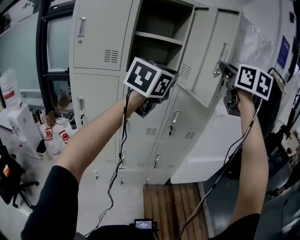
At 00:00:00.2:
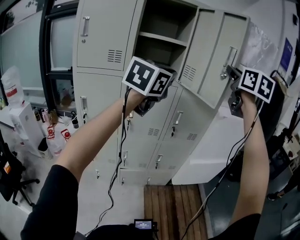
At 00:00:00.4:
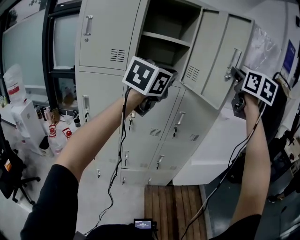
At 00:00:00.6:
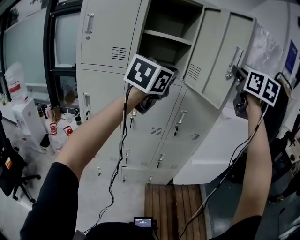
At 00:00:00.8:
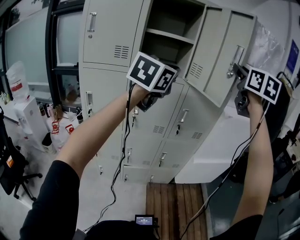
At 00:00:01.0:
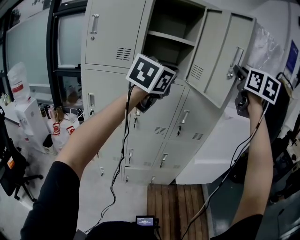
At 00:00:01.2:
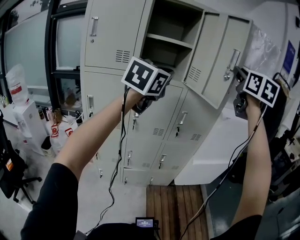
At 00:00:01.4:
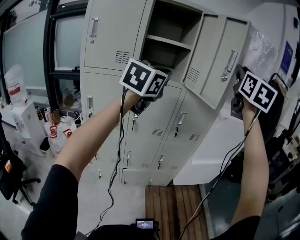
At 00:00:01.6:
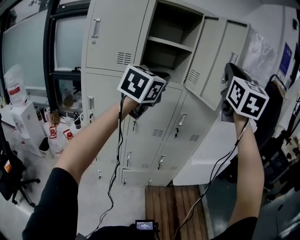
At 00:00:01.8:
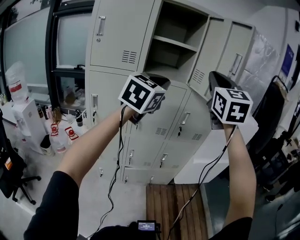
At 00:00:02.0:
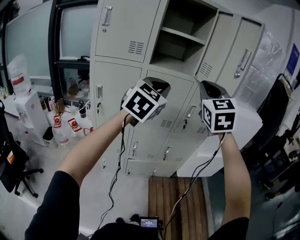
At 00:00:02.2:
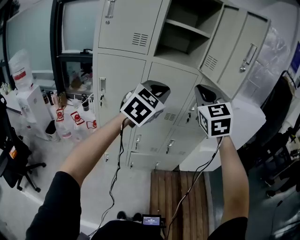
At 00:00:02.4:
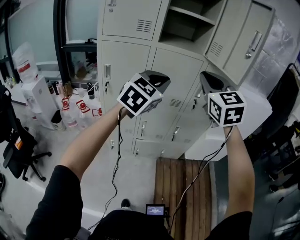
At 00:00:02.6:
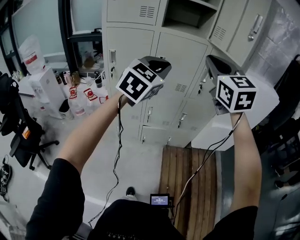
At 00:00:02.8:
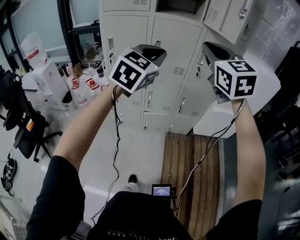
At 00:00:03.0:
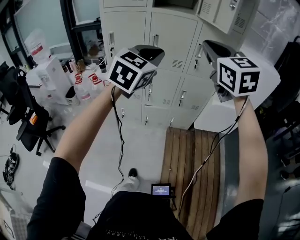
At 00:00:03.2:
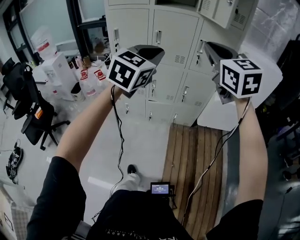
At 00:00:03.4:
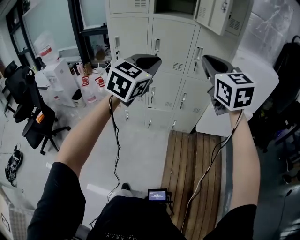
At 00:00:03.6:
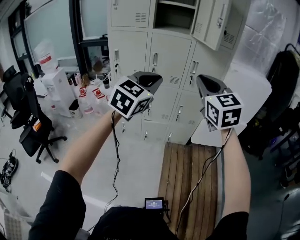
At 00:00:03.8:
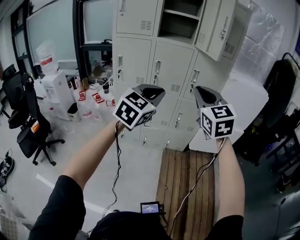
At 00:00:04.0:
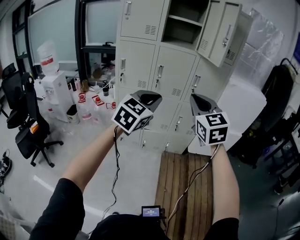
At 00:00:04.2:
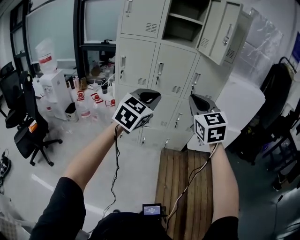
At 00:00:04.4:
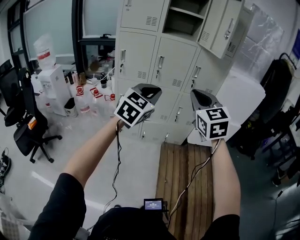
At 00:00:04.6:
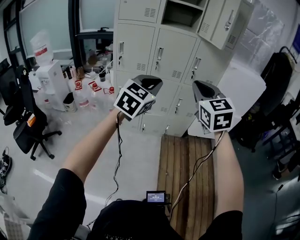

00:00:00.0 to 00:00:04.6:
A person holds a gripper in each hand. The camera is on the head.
00:00:00.0 to 00:00:01.6: The right gripper heads backward, covering approximately 10 cm, and turns by roughly 20 degrees. Meanwhile the left gripper moves to the left, some 5 cm.
00:00:01.6 to 00:00:03.0: Both grippers travel together downward and backward, roughly 25 cm. The right gripper changes its angle by about 40 degrees.
00:00:03.0 to 00:00:04.6: The left gripper shifts about 15 cm backward, while the right gripper heads backward and downward, covering some 15 cm.

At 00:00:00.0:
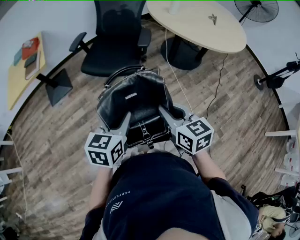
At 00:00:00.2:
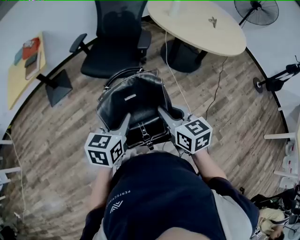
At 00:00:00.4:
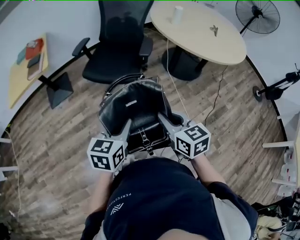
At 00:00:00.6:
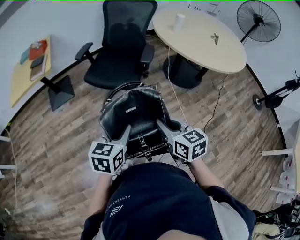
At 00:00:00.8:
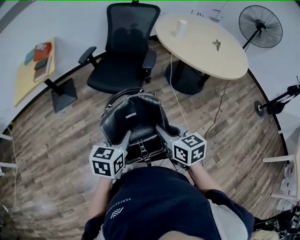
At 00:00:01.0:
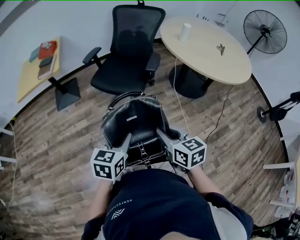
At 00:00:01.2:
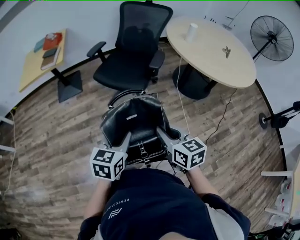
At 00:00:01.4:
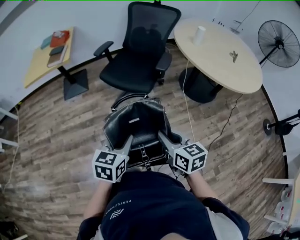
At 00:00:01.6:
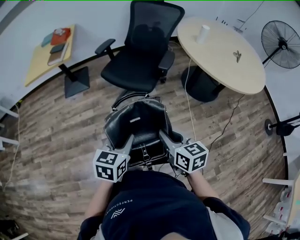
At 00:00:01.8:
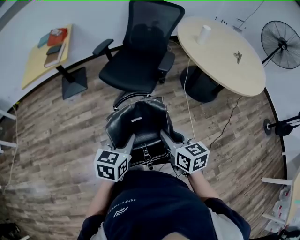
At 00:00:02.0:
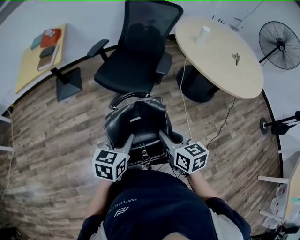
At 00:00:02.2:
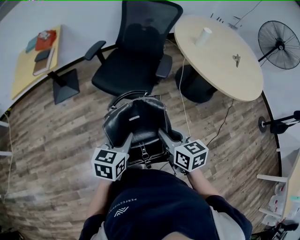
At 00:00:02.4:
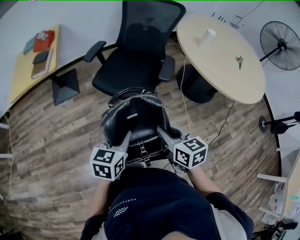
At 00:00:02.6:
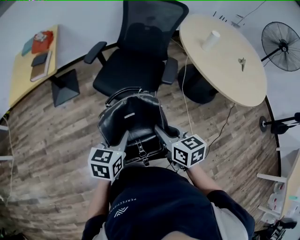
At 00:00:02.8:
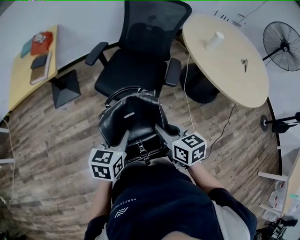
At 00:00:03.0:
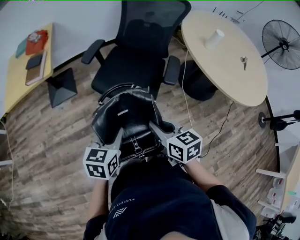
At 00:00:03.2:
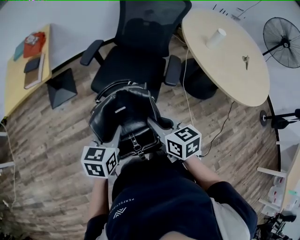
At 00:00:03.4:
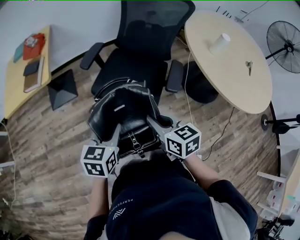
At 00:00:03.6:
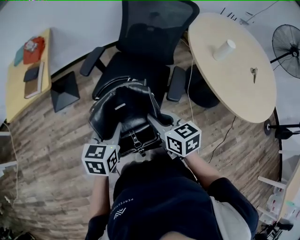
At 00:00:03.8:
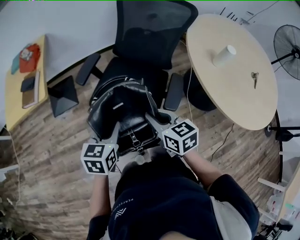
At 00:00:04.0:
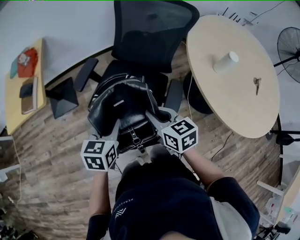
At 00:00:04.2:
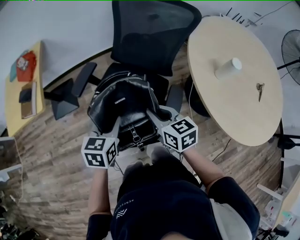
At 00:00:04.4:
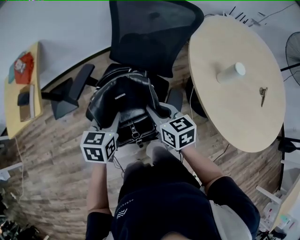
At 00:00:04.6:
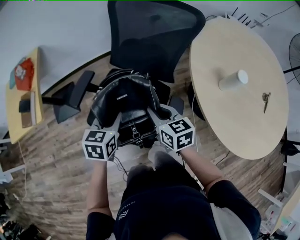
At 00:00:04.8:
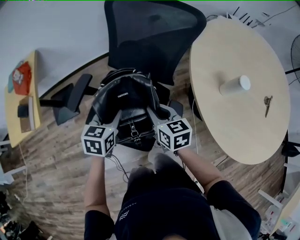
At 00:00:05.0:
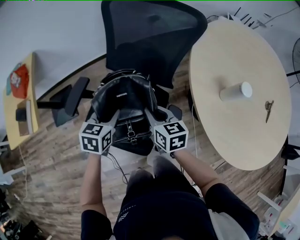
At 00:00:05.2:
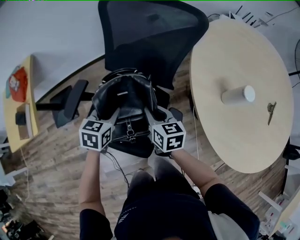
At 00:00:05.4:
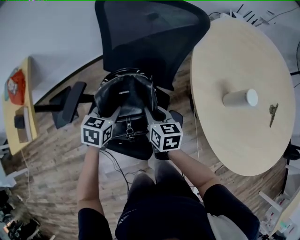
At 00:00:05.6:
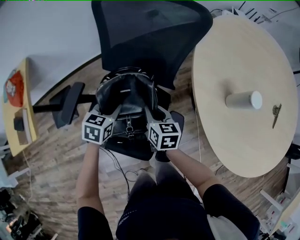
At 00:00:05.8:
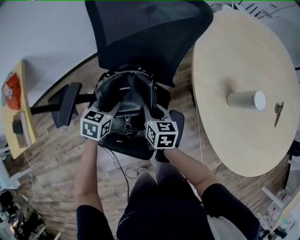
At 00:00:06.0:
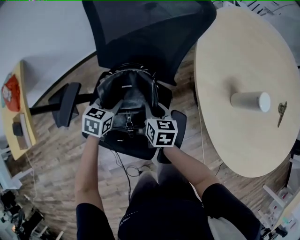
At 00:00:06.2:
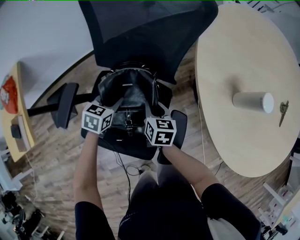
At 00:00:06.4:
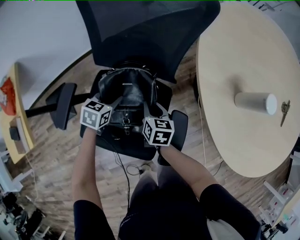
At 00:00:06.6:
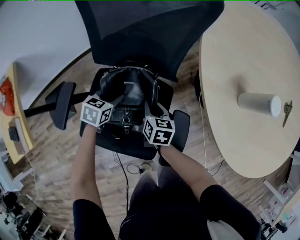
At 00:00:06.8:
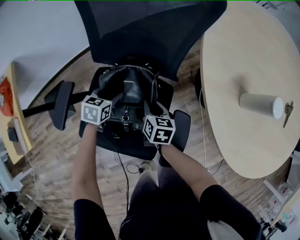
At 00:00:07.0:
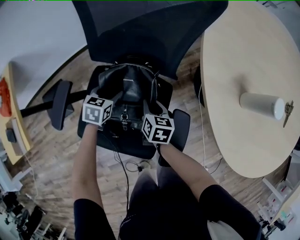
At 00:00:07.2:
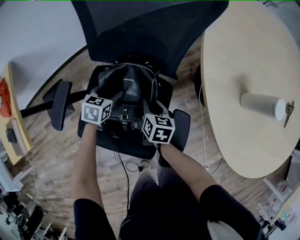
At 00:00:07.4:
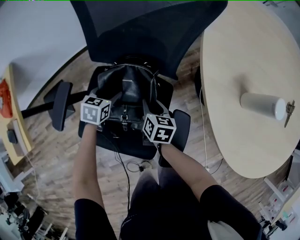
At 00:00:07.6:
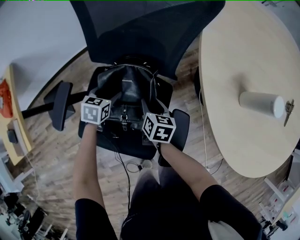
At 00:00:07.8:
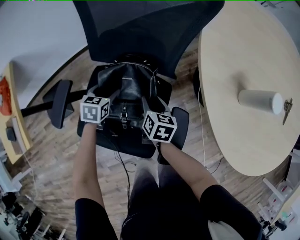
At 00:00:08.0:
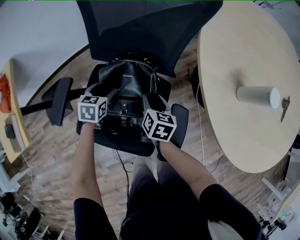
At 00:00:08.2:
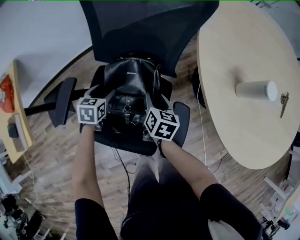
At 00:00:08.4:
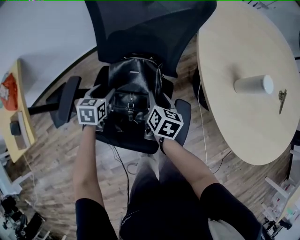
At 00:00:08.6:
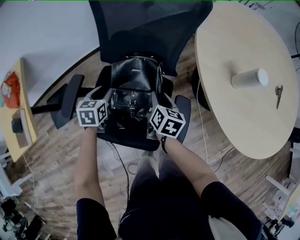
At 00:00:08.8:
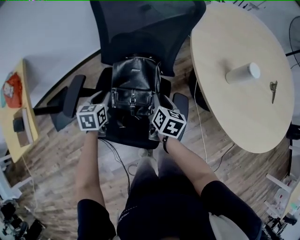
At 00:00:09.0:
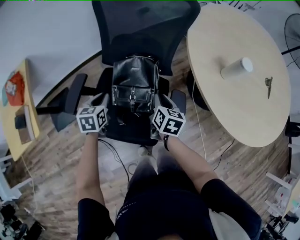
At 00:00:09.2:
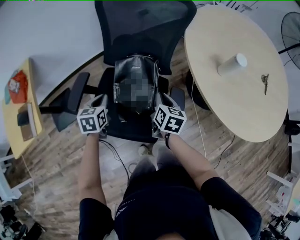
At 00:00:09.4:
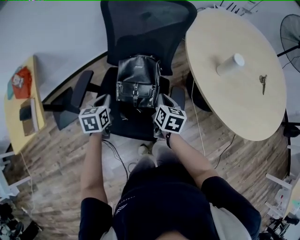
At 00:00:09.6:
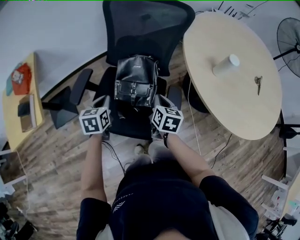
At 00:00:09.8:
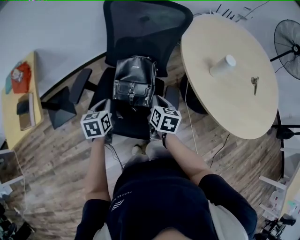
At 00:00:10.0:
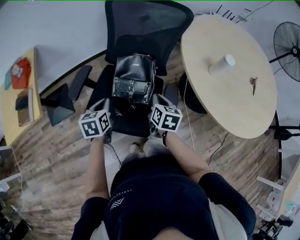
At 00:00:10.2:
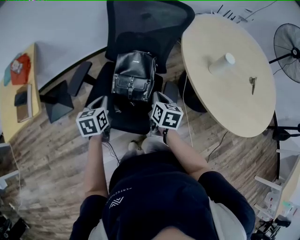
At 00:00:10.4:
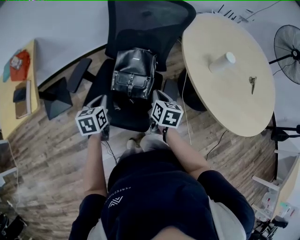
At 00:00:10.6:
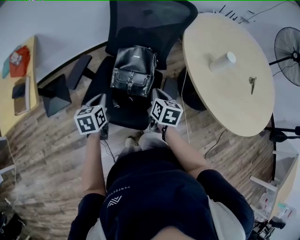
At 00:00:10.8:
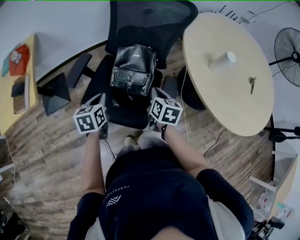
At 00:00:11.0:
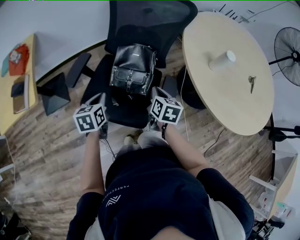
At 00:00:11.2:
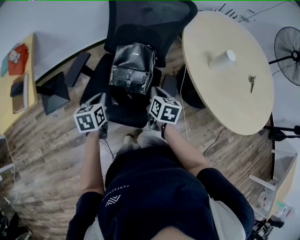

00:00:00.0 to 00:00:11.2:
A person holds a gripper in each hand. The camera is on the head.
00:00:00.0 to 00:00:01.6: There are only small adjustments of the grippers.
00:00:01.6 to 00:00:03.2: The grippers both shift forward by roughly 25 cm.
00:00:03.2 to 00:00:04.8: The right gripper travels forward and to the right by some 35 cm, while the left gripper is displaced forward by some 35 cm.
00:00:04.8 to 00:00:06.4: Both grippers move downward and forward, roughly 20 cm. The right gripper swivels about 30 degrees. The left gripper rotates some 20 degrees.
00:00:06.4 to 00:00:08.0: The left gripper opens, while the right gripper opens up.
00:00:08.0 to 00:00:09.6: The left gripper goes roughly 20 cm backward and upward, and closes, while the right gripper moves upward and backward, approximately 15 cm, and closes up.
00:00:09.6 to 00:00:11.2: The left gripper travels backward by roughly 5 cm.

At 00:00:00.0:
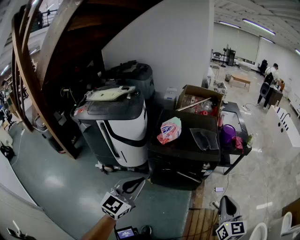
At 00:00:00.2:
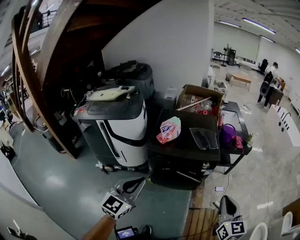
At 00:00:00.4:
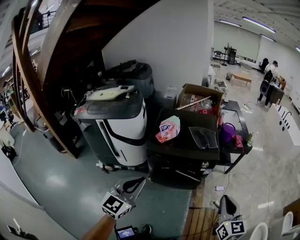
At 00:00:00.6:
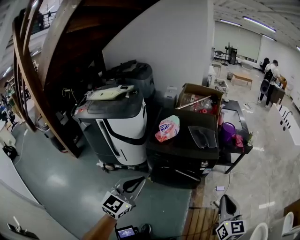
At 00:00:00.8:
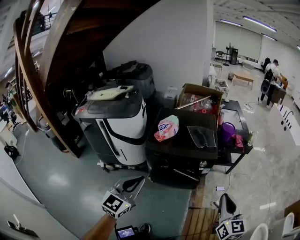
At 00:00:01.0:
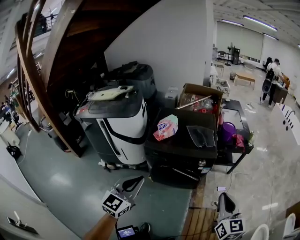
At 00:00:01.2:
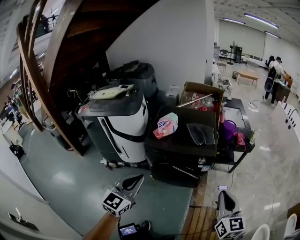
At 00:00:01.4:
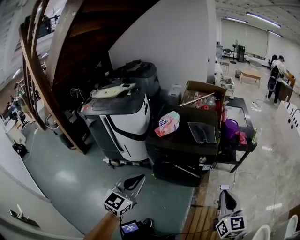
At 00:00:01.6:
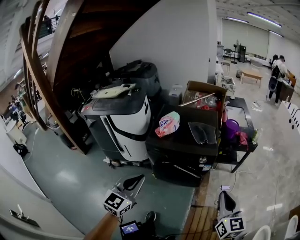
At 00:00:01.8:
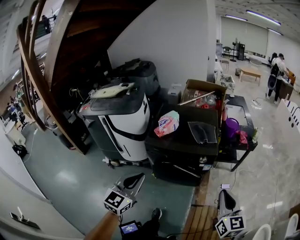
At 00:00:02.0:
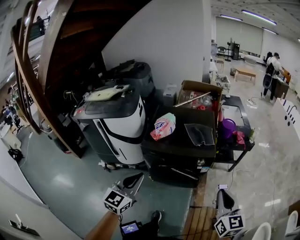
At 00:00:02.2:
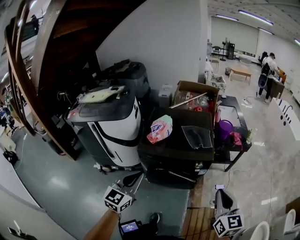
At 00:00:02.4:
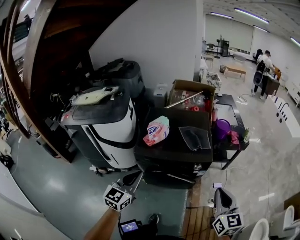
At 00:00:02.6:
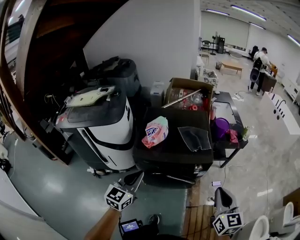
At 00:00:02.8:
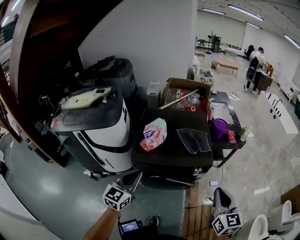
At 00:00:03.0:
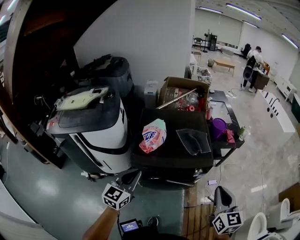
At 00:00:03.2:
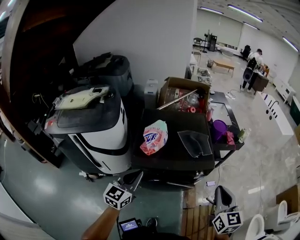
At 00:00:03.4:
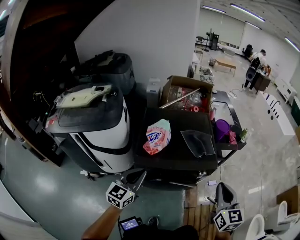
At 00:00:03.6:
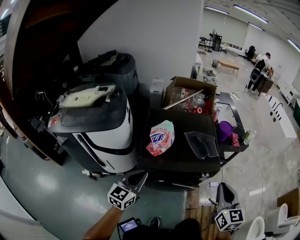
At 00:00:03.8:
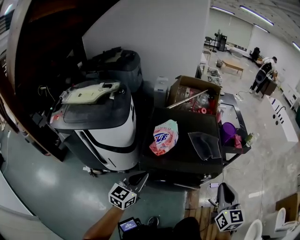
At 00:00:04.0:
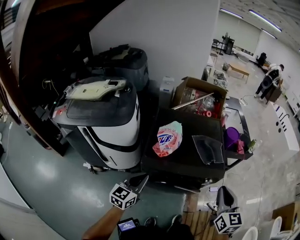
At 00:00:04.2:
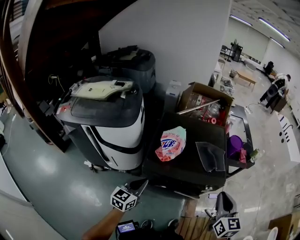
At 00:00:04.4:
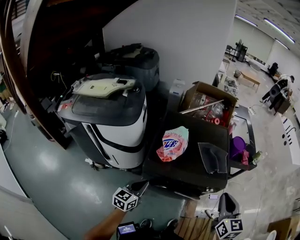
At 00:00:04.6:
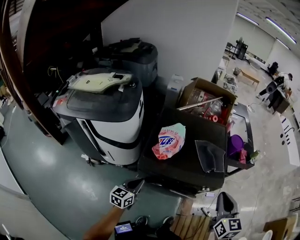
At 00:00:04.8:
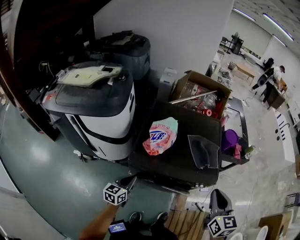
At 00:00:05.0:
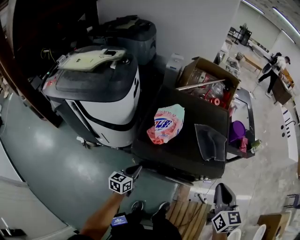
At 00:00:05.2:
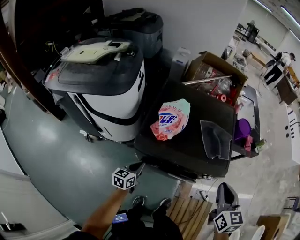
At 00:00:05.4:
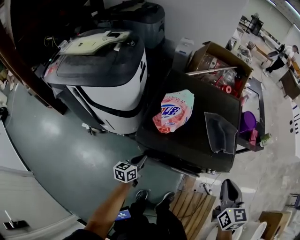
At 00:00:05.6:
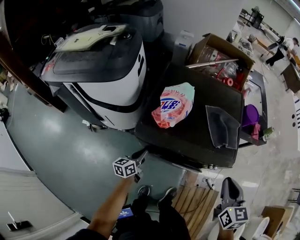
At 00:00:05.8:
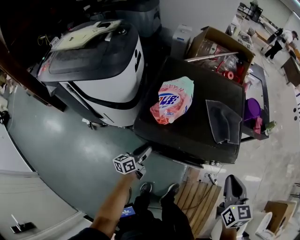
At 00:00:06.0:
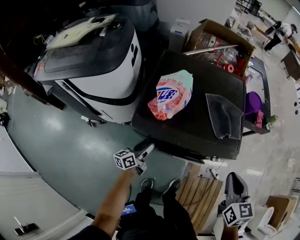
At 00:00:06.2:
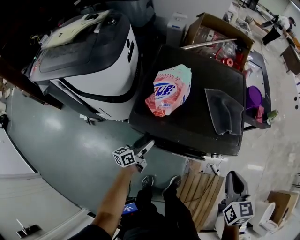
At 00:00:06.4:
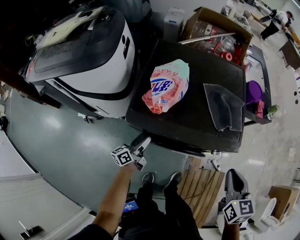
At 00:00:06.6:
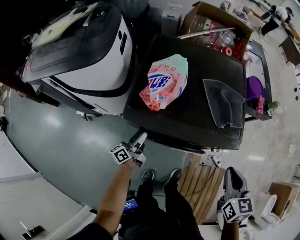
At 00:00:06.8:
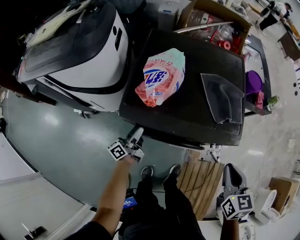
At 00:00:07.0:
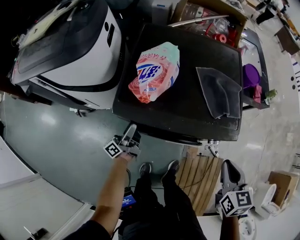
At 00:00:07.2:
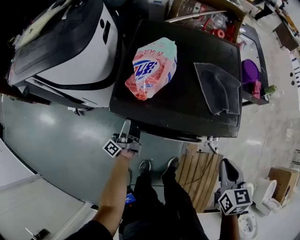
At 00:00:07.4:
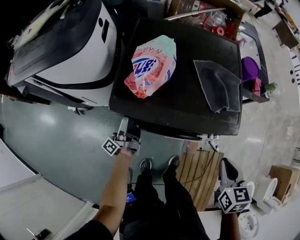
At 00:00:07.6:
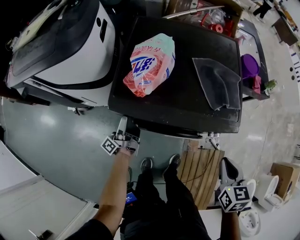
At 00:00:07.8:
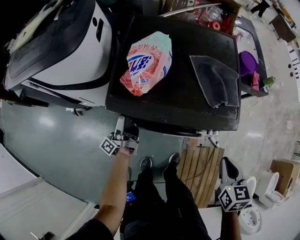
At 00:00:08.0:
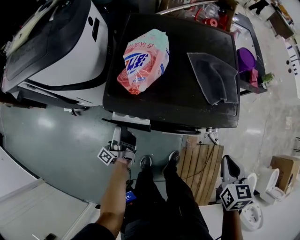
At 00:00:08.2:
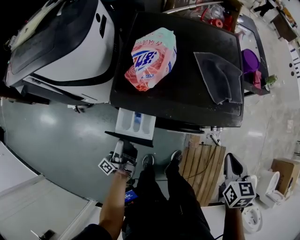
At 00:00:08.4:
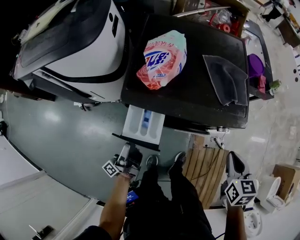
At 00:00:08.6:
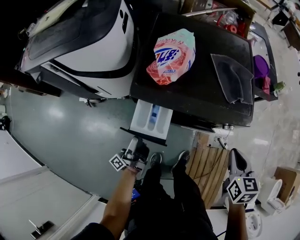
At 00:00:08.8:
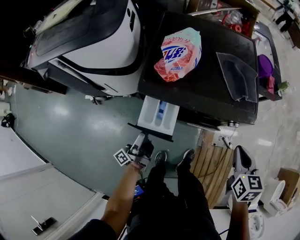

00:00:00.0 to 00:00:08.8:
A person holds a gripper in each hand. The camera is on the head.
00:00:00.0 to 00:00:01.4: Both grippers travel together to the right, roughly 10 cm.
00:00:01.4 to 00:00:03.0: Both grippers travel together forward and to the left, about 20 cm.
00:00:03.0 to 00:00:04.4: The left gripper is displaced downward by some 15 cm. Meanwhile the right gripper travels forward and to the left by approximately 10 cm.
00:00:04.4 to 00:00:05.8: The right gripper moves downward, about 10 cm; the left gripper travels downward by some 20 cm, and rotates some 40 degrees.
00:00:05.8 to 00:00:07.4: The right gripper heads downward, covering approximately 10 cm, while the left gripper ends up about 5 cm from where it was, turns by roughly 50 degrees, and opens up.
00:00:07.4 to 00:00:08.8: The left gripper shifts approximately 15 cm backward.
